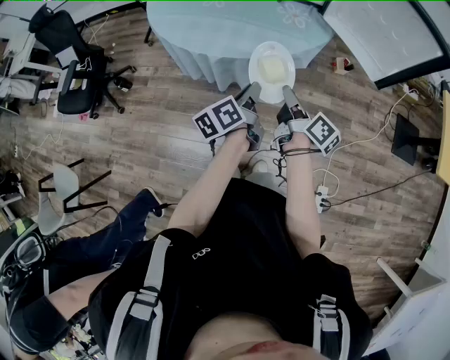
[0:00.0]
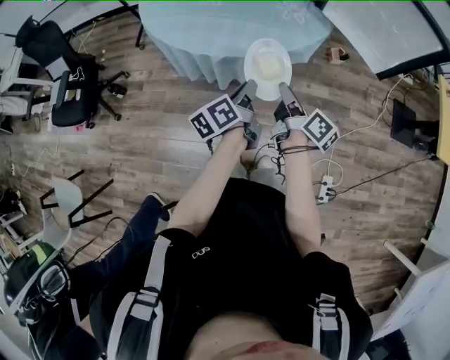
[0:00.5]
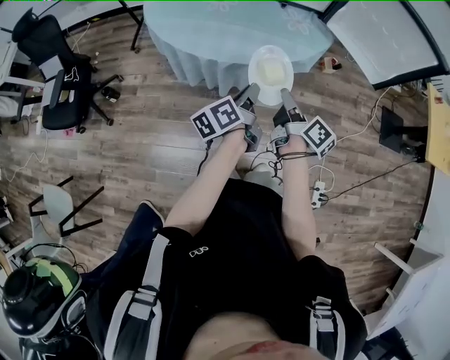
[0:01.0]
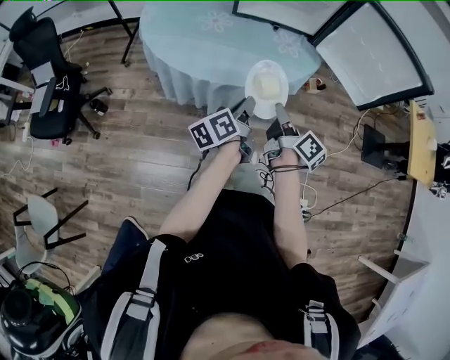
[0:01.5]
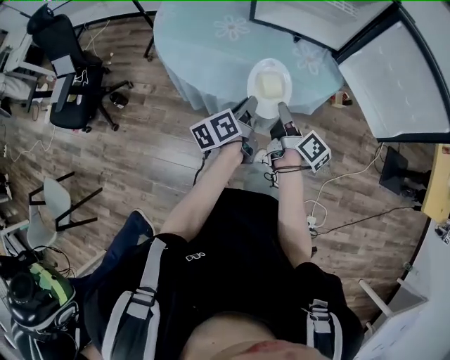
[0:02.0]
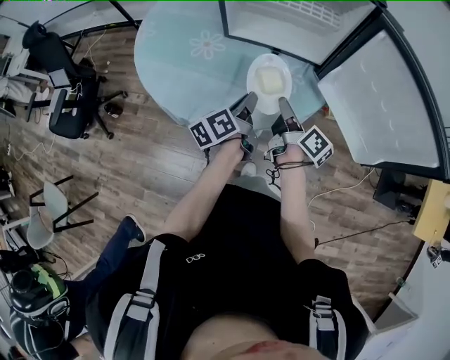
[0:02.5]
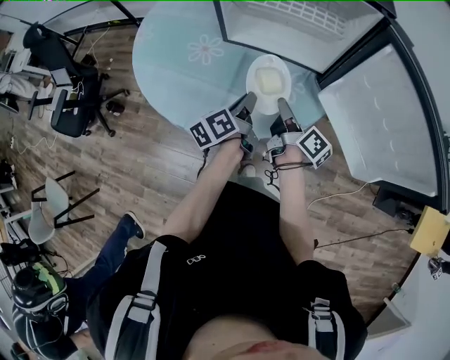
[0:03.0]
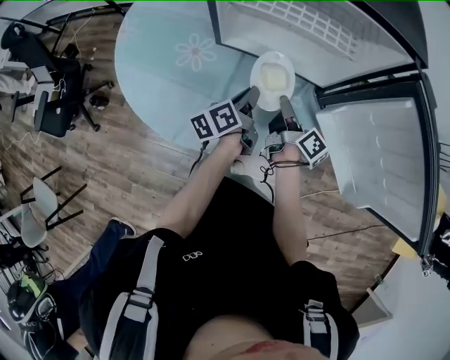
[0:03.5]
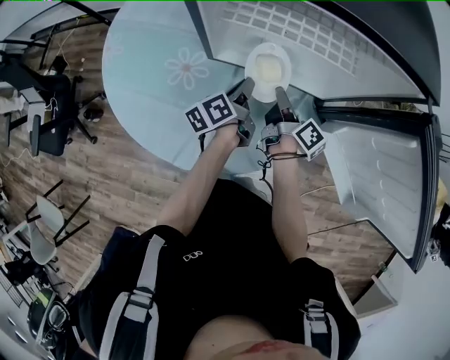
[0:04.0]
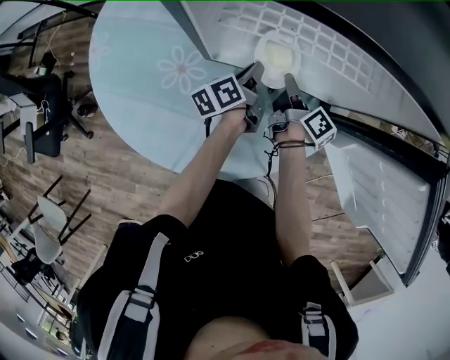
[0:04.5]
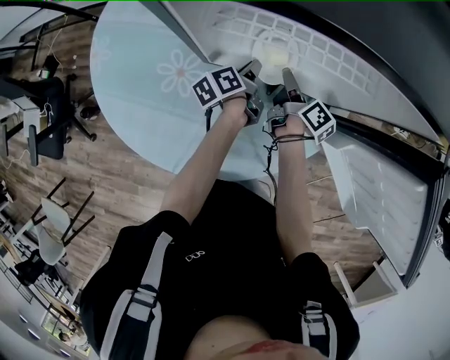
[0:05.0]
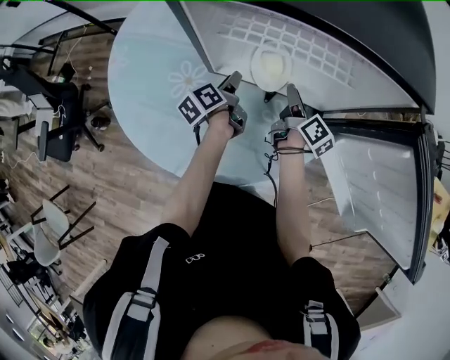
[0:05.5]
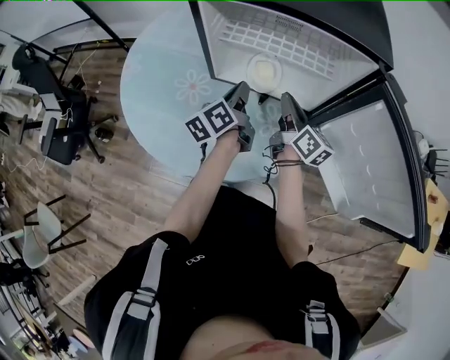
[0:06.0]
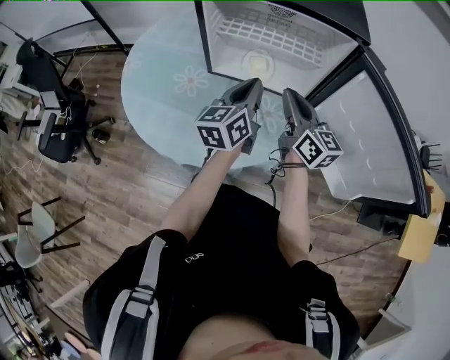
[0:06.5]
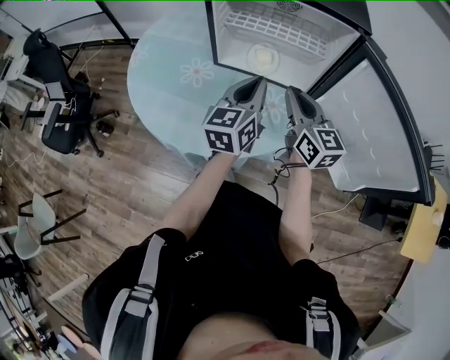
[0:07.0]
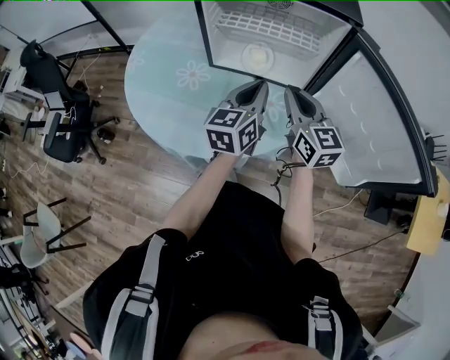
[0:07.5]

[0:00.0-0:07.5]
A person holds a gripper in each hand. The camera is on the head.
0:00.0 to 0:02.0: Both grippers travel together forward and to the left, roughly 15 cm.
0:02.0 to 0:04.0: Both grippers move forward, about 30 cm.
0:04.0 to 0:05.5: The right gripper shifts about 5 cm forward, and opens its fingers. The left gripper heads forward and to the left, covering about 5 cm, and opens.
0:05.5 to 0:07.5: The left gripper travels upward, backward and to the right by approximately 30 cm, twists about 50 degrees clockwise, seen from behind, and closes. The right gripper shifts approximately 25 cm upward and backward, twists some 60 degrees counterclockwise, seen from behind, and closes its fingers.

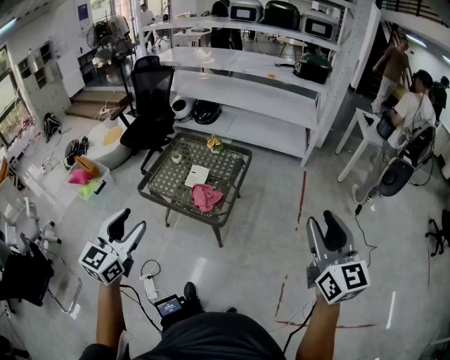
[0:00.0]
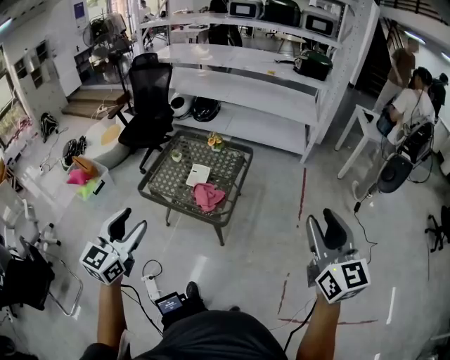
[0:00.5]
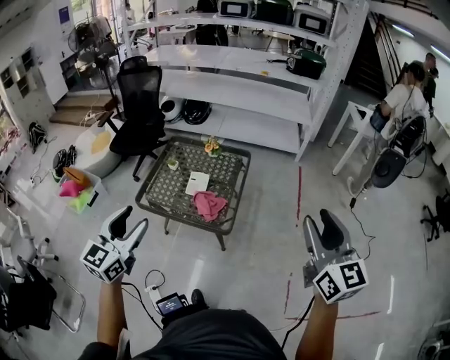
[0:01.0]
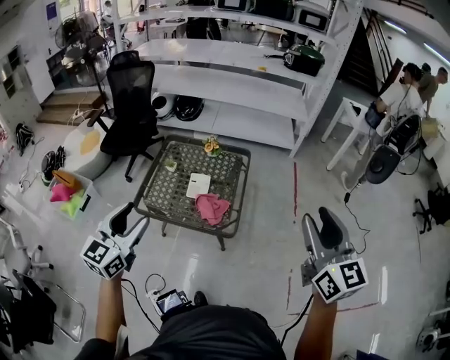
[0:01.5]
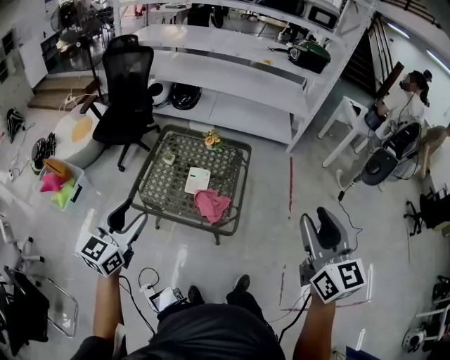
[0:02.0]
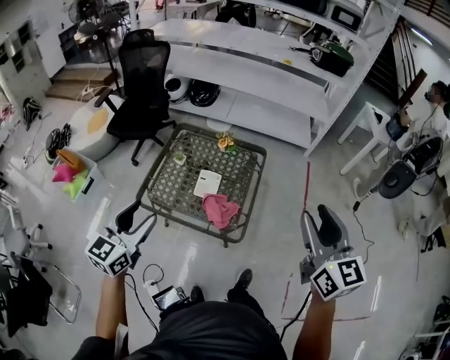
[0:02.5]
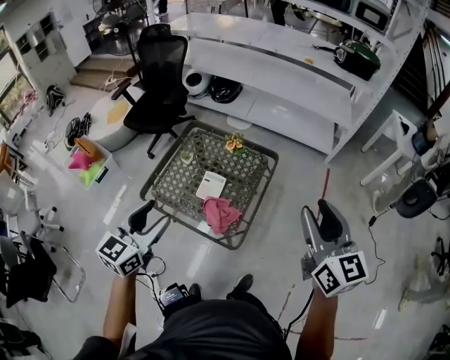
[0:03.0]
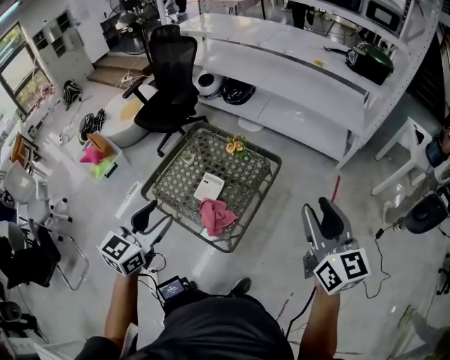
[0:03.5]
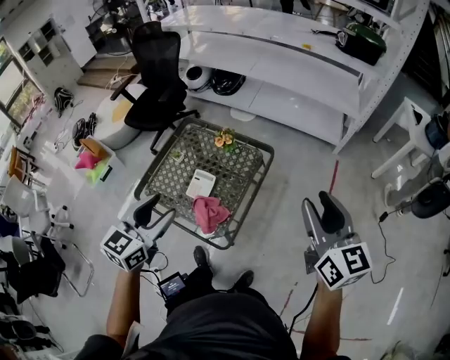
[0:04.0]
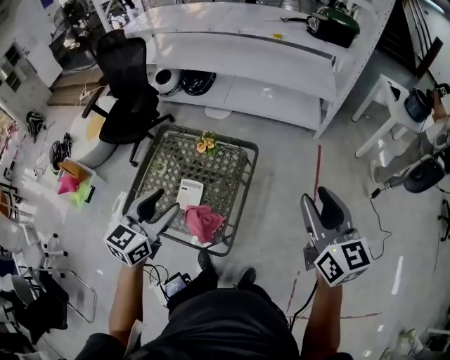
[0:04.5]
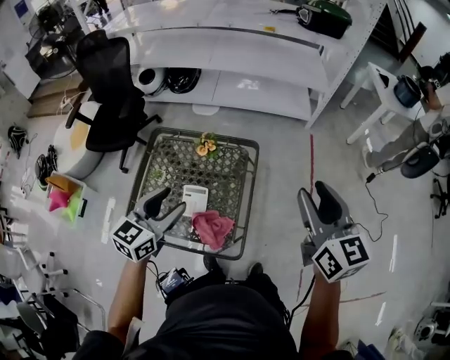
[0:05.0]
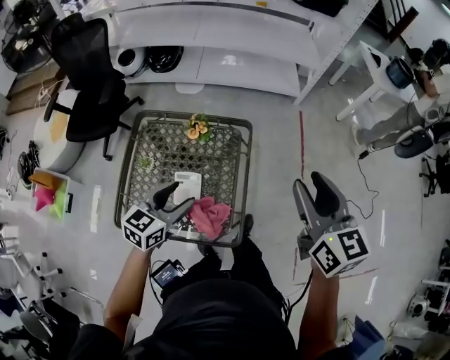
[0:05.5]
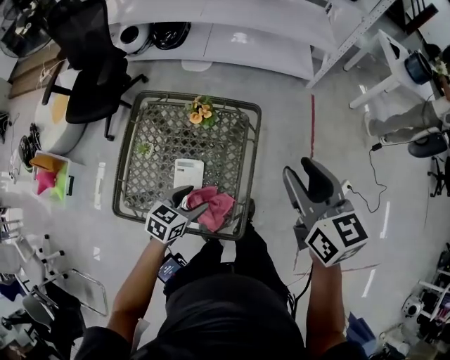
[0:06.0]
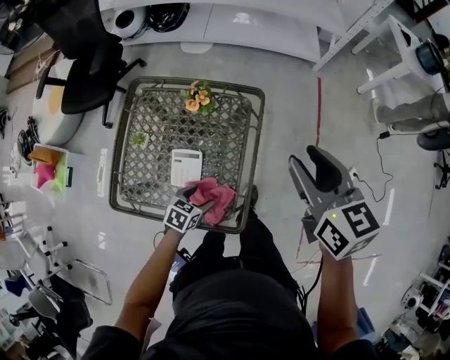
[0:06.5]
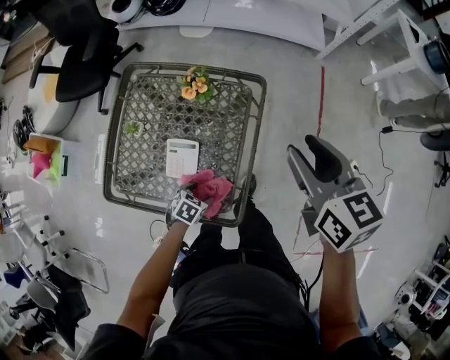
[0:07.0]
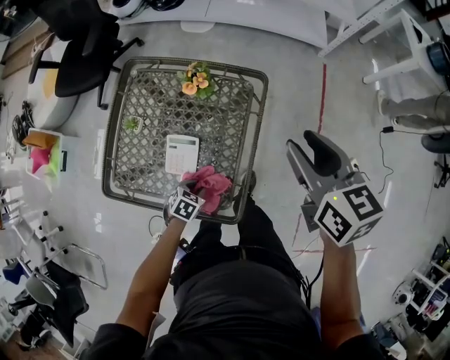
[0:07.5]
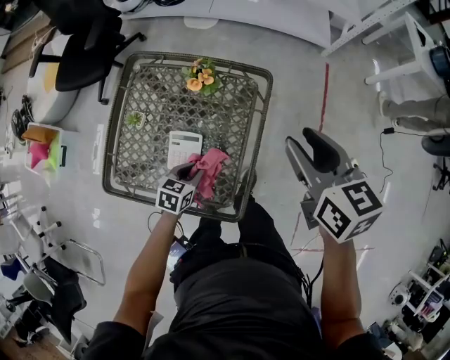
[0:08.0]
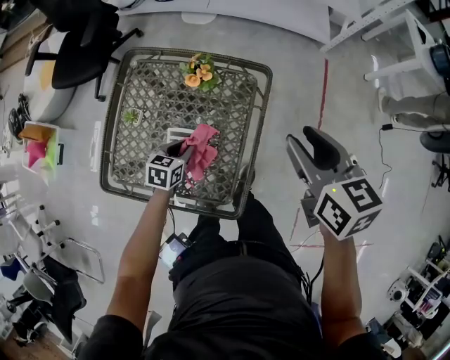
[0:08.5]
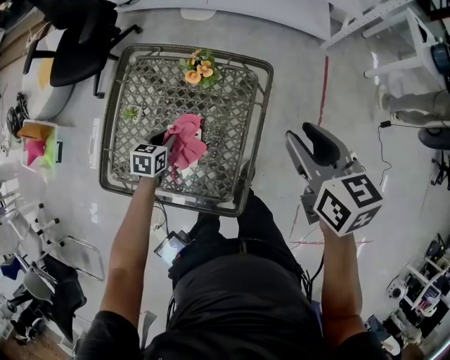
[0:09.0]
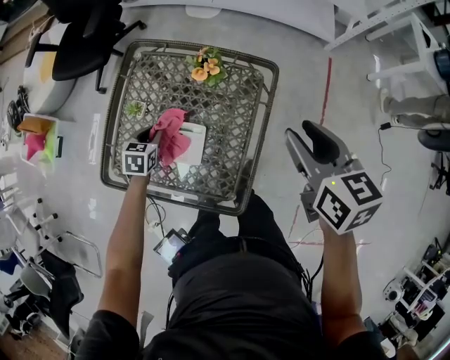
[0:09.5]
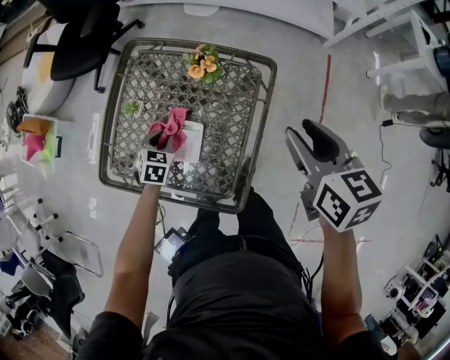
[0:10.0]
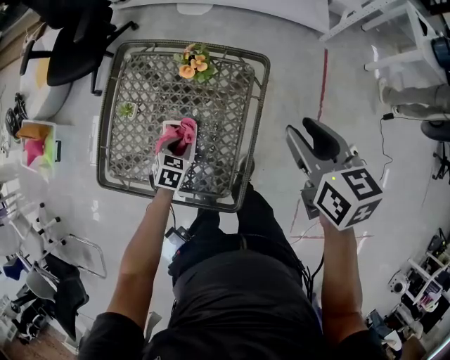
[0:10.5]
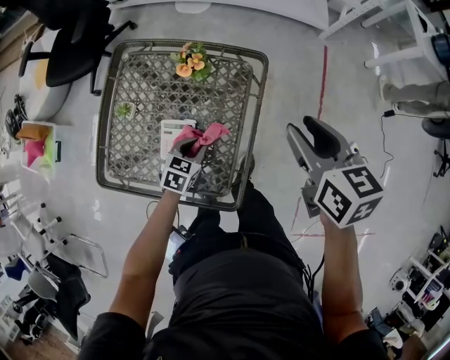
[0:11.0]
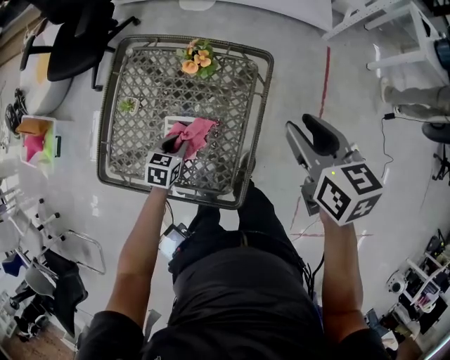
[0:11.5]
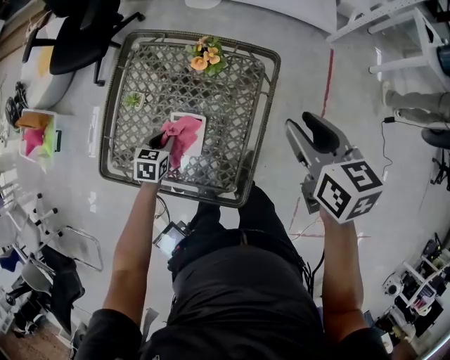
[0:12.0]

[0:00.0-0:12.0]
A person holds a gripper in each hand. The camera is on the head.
0:00.0 to 0:02.0: The left gripper goes roughly 25 cm forward and to the left. The right gripper shifts approximately 20 cm to the left and forward.
0:02.0 to 0:04.0: The right gripper moves forward and to the right, some 30 cm, and swivels about 20 degrees. Meanwhile the left gripper is displaced to the right and forward by some 25 cm.
0:04.0 to 0:06.0: The left gripper heads downward, covering roughly 30 cm, and rotates about 40 degrees; the right gripper moves some 20 cm.
0:06.0 to 0:08.0: The right gripper moves downward and forward, about 10 cm. The left gripper is displaced downward by about 15 cm, and closes its fingers.
0:08.0 to 0:10.0: The left gripper is displaced to the left and forward by some 15 cm, and turns by roughly 20 degrees.
0:10.0 to 0:12.0: The left gripper travels to the right and back again, roughly 15 cm each way.

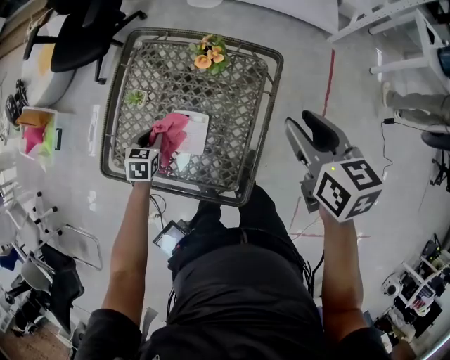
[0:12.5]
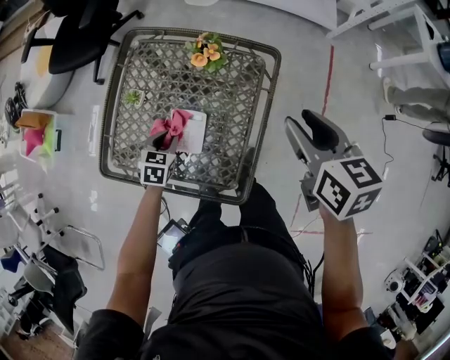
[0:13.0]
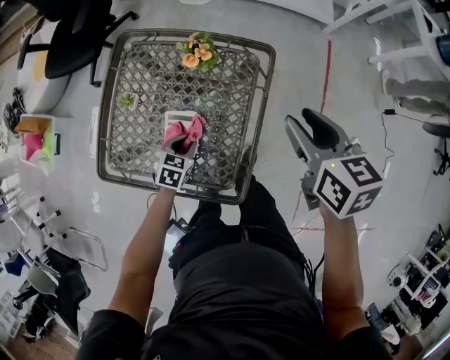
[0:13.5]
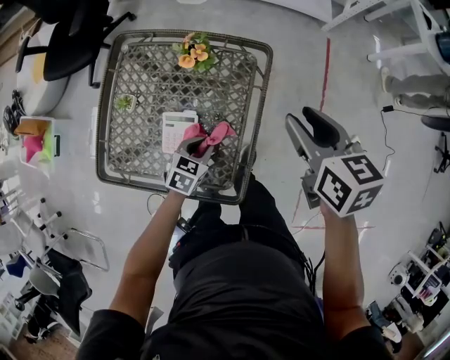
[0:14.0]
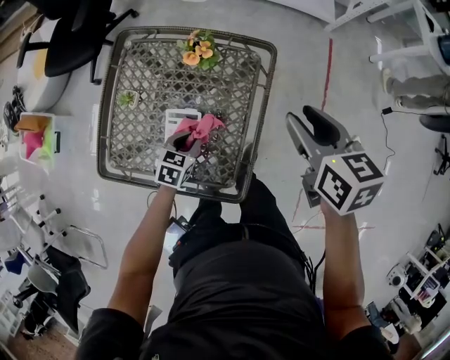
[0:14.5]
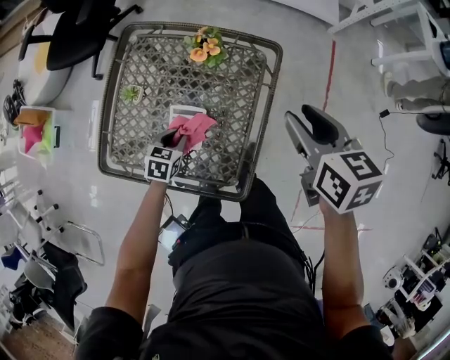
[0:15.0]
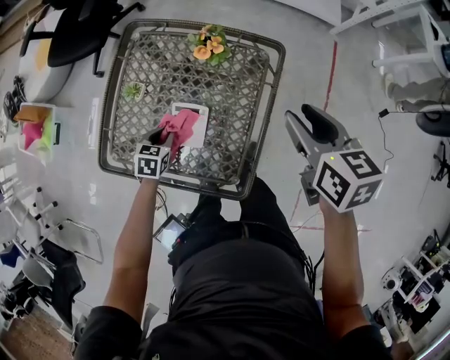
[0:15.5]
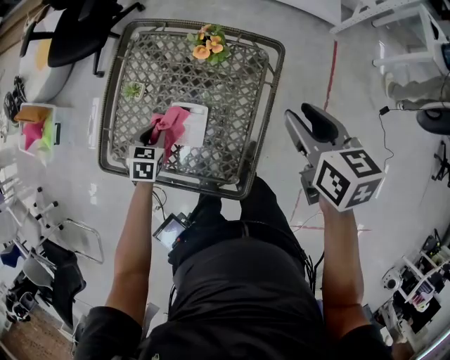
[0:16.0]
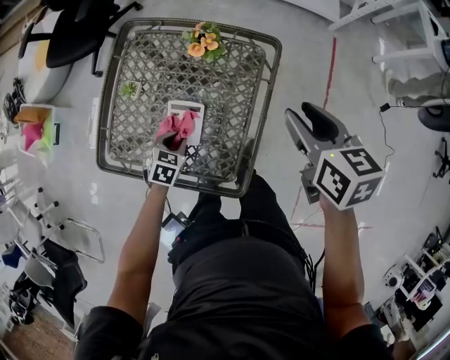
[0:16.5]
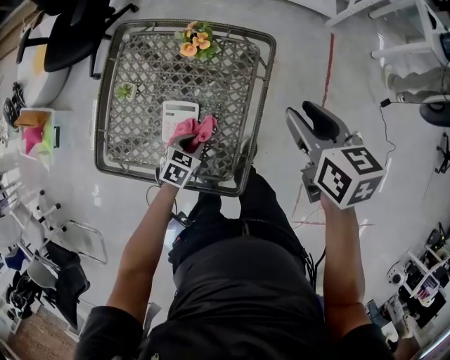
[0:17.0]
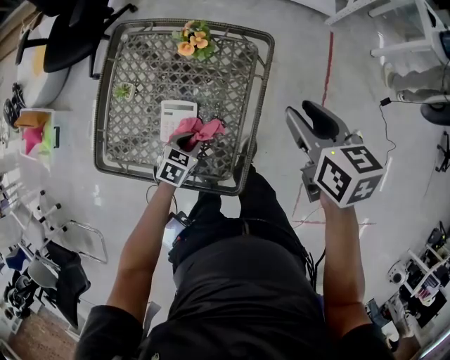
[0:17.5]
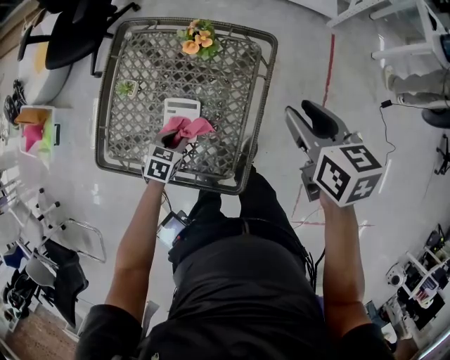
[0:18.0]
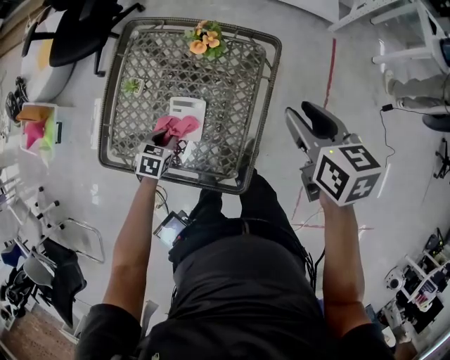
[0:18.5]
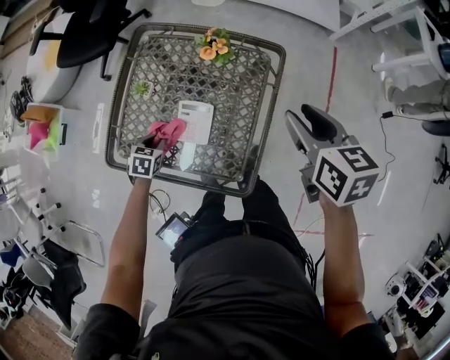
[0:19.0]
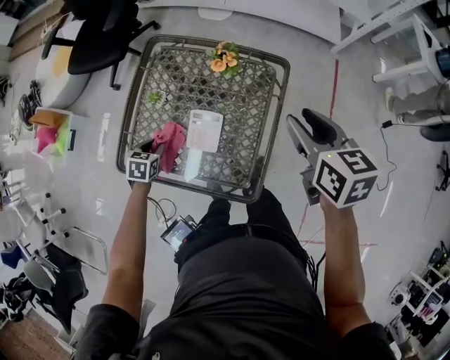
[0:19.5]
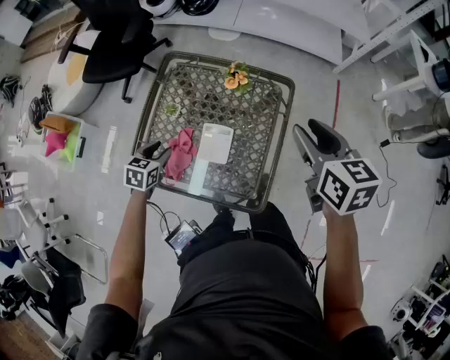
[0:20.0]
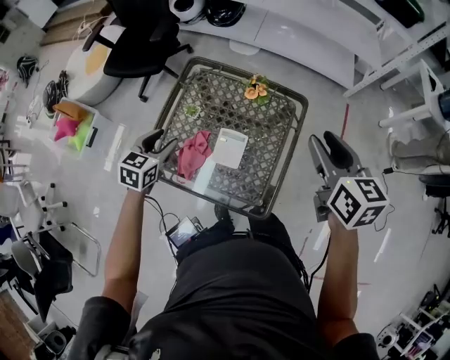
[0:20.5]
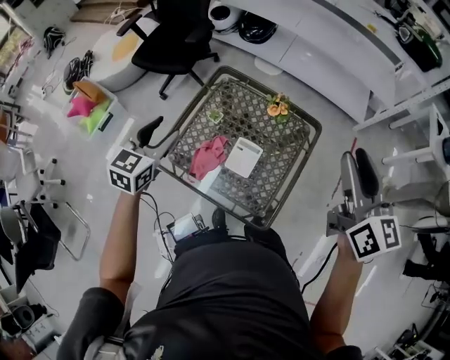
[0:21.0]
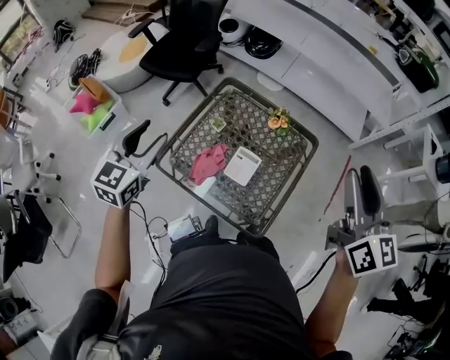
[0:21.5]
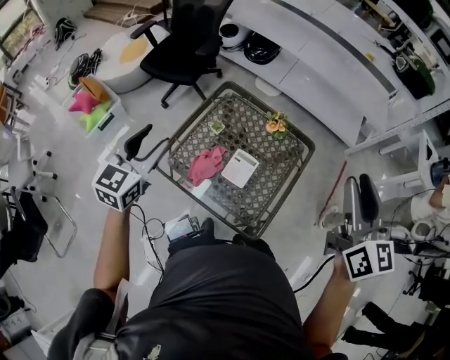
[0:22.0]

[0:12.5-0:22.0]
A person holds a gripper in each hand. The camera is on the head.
0:12.5 to 0:14.5: The left gripper moves to the right, about 15 cm.
0:14.5 to 0:16.5: The left gripper shifts some 5 cm to the left.
0:16.5 to 0:18.0: The left gripper goes to the right and returns, roughly 10 cm each way.
0:18.0 to 0:20.0: The left gripper moves to the left and upward, some 20 cm, while the right gripper goes some 10 cm upward and to the left.
0:20.0 to 0:22.0: The right gripper travels upward and backward by roughly 20 cm, and rotates approximately 30 degrees. The left gripper travels upward by roughly 30 cm, and angles its fingers upward, by roughly 30 degrees.
